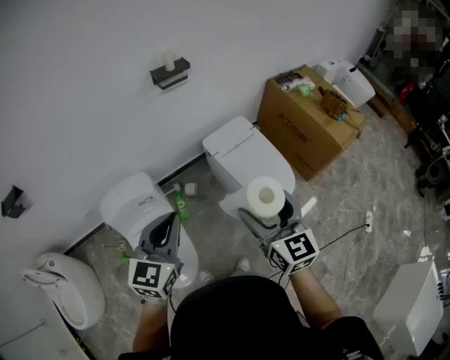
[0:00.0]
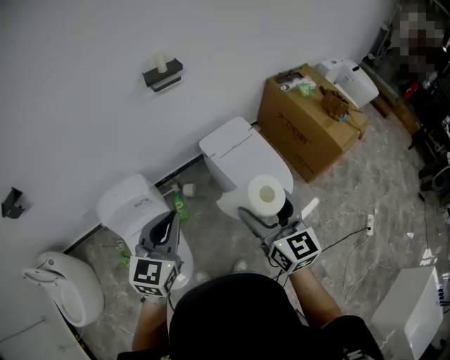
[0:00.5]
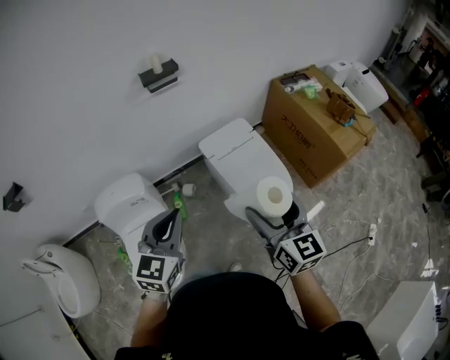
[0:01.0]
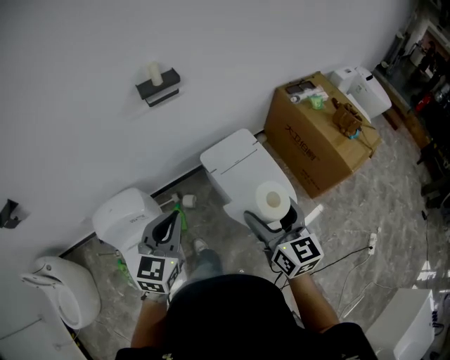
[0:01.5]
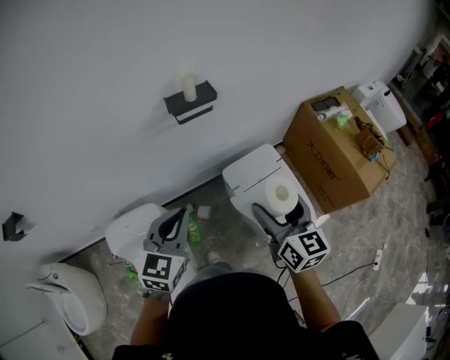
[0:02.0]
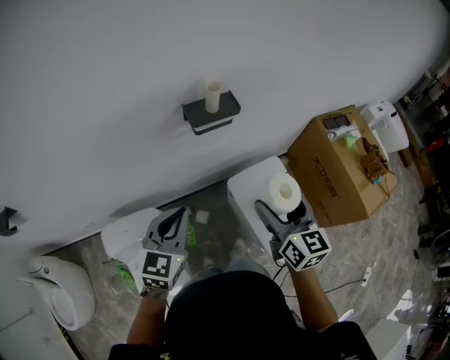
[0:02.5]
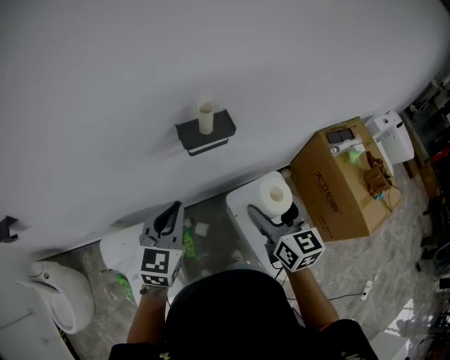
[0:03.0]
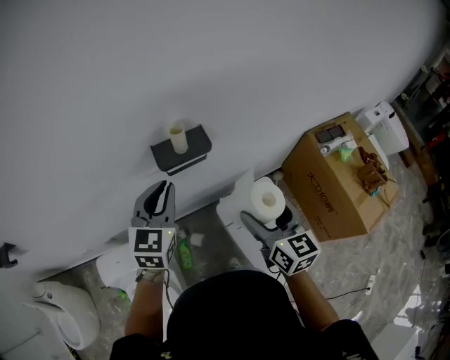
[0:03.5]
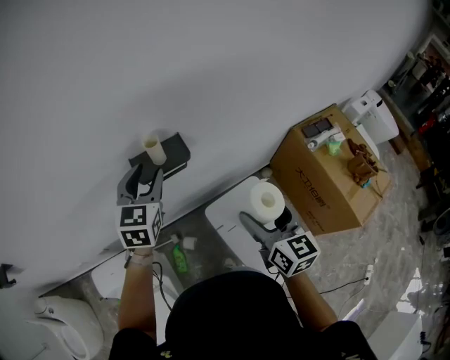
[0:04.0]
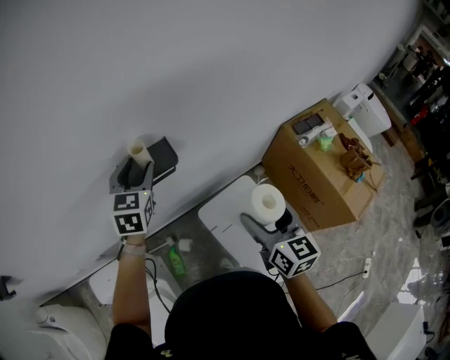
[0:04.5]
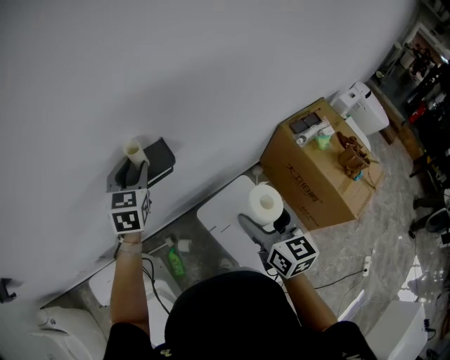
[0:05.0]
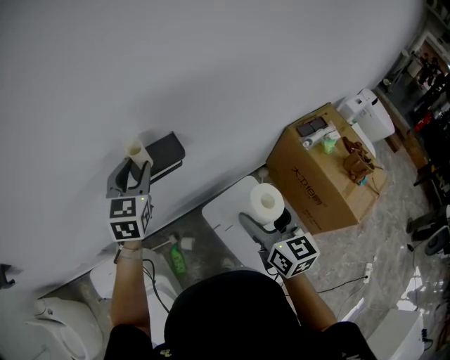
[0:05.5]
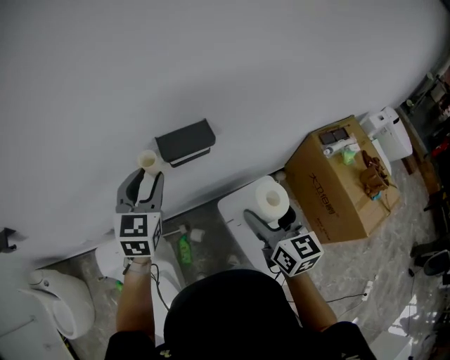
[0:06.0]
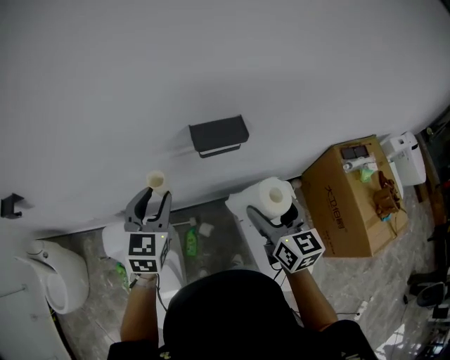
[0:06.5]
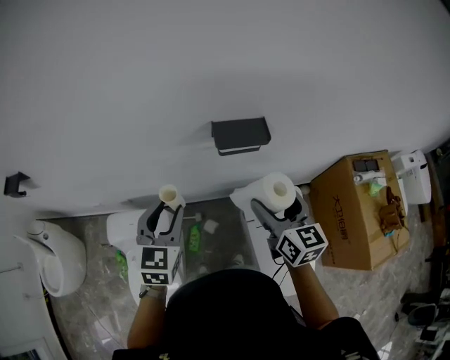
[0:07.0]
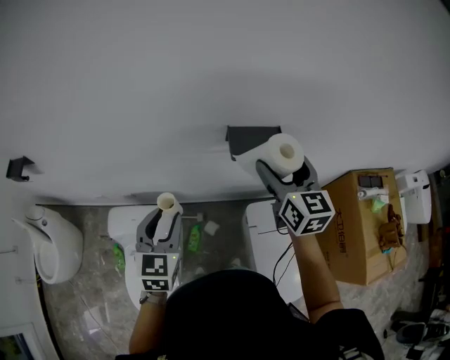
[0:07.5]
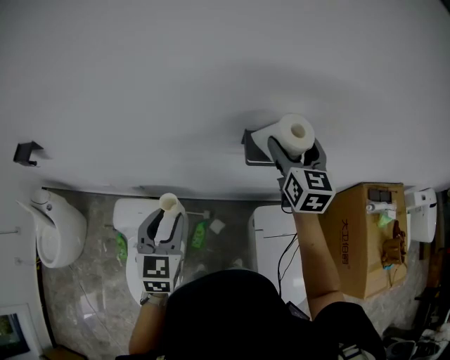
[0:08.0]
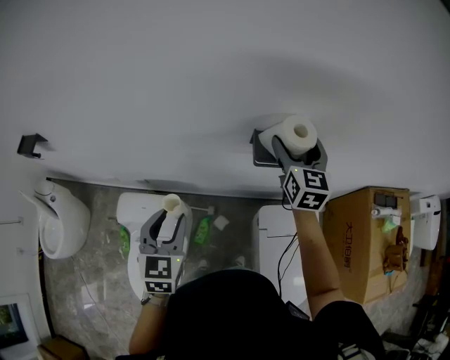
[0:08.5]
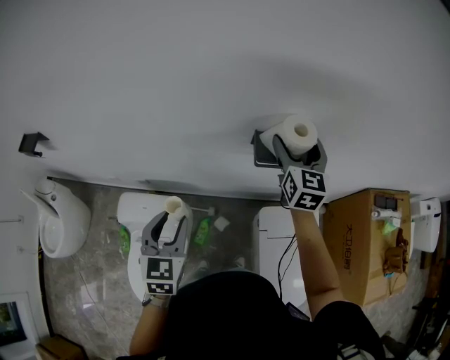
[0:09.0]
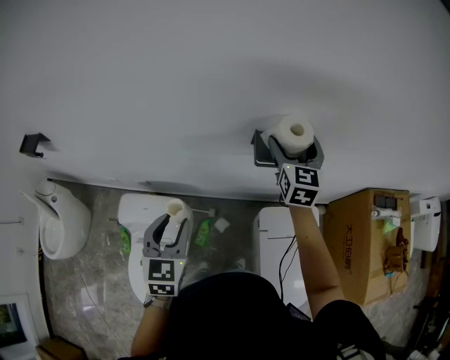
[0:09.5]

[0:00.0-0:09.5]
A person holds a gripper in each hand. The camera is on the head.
0:00.0 to 0:02.0: The grippers both shift forward by roughly 30 cm.
0:02.0 to 0:04.0: The right gripper moves forward, roughly 20 cm, while the left gripper goes some 35 cm forward, and opens its fingers.
0:04.0 to 0:05.5: There are only small adjustments of the grippers.
0:05.5 to 0:07.5: The left gripper shifts some 25 cm to the left and backward, and changes its angle by some 20 degrees. Meanwhile the right gripper is displaced to the left and forward by about 25 cm, and changes its angle by about 20 degrees.
0:07.5 to 0:09.5: The right gripper travels forward by approximately 10 cm.

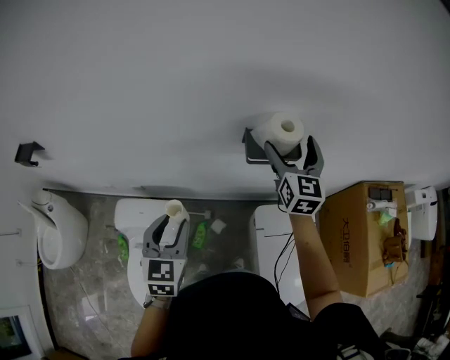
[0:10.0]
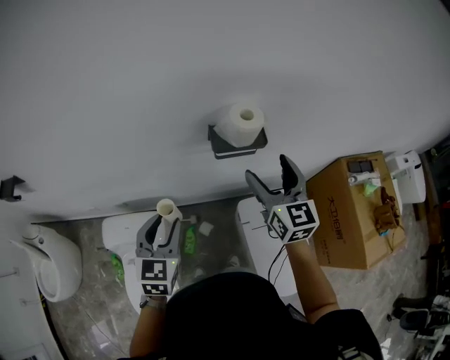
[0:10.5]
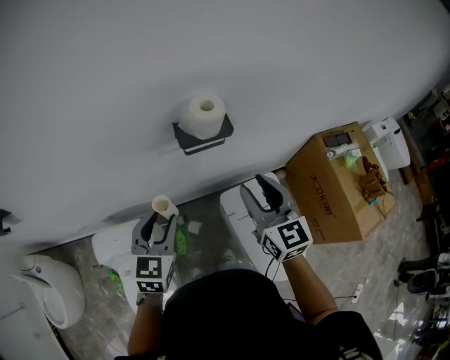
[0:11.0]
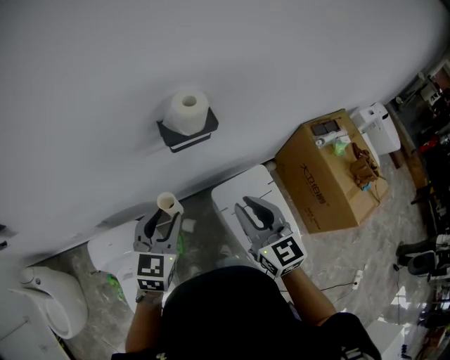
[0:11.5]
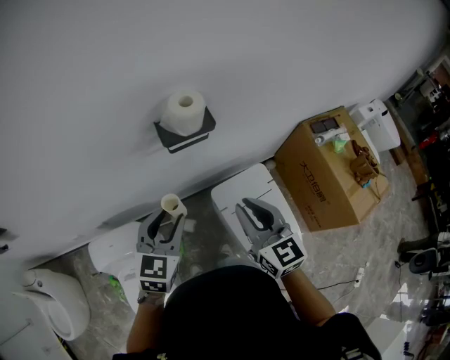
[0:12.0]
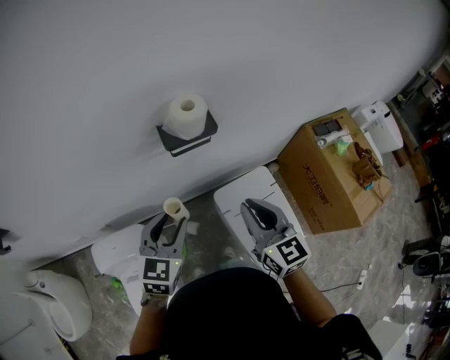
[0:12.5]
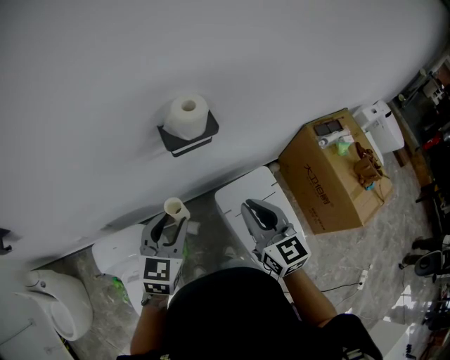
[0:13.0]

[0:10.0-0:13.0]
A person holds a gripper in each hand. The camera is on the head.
0:10.0 to 0:11.5: The right gripper travels backward by some 25 cm, and closes up. Meanwhile the left gripper shifts about 15 cm to the right, and rotates about 30 degrees.
0:11.5 to 0:13.0: The grippers stay close to where they were, moving slightly.

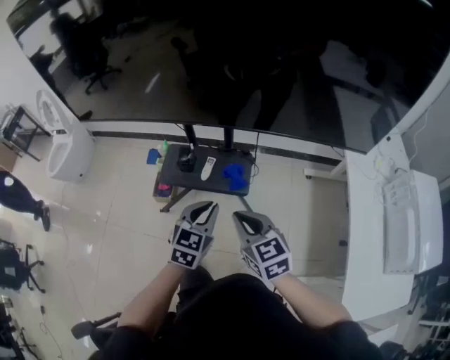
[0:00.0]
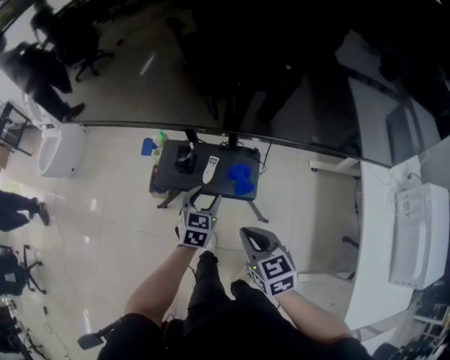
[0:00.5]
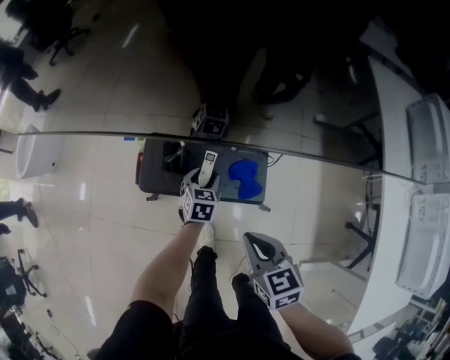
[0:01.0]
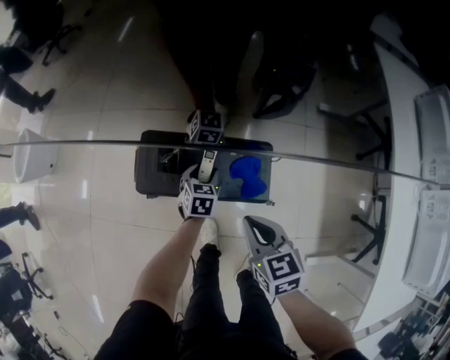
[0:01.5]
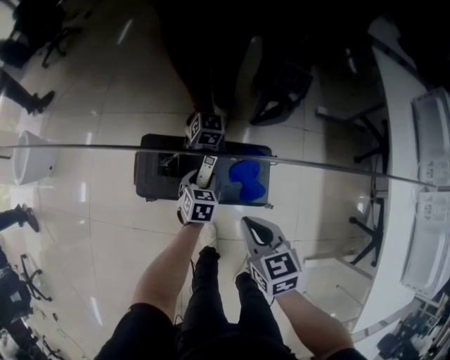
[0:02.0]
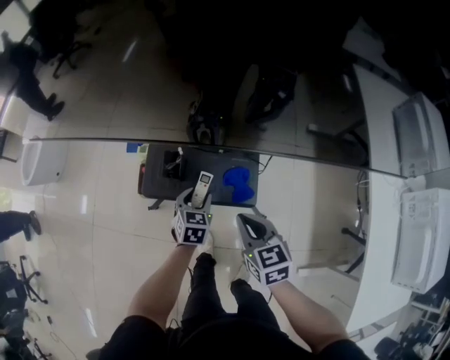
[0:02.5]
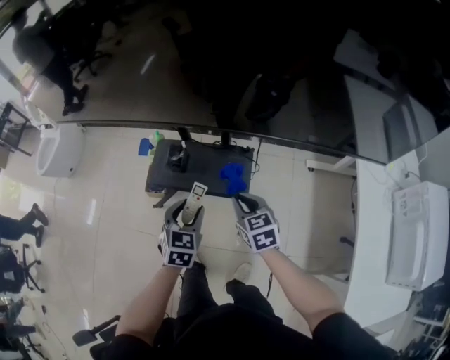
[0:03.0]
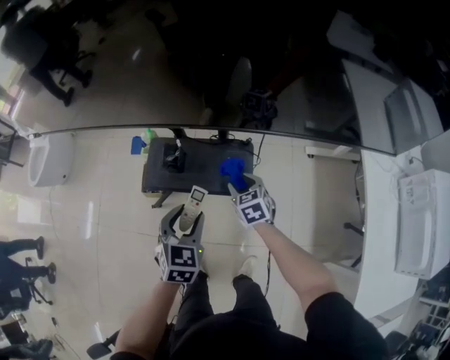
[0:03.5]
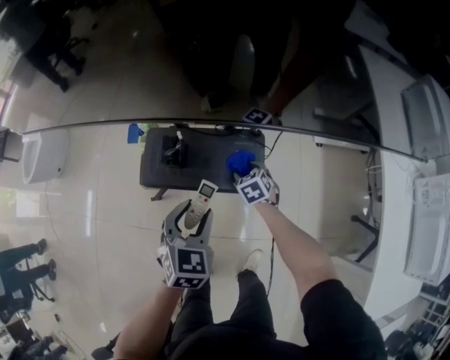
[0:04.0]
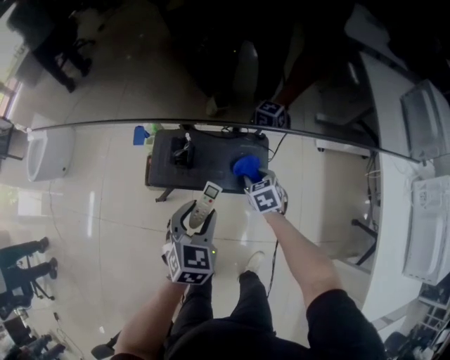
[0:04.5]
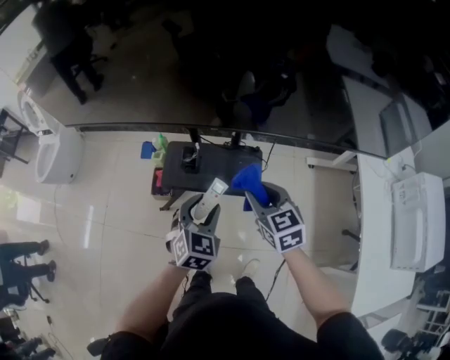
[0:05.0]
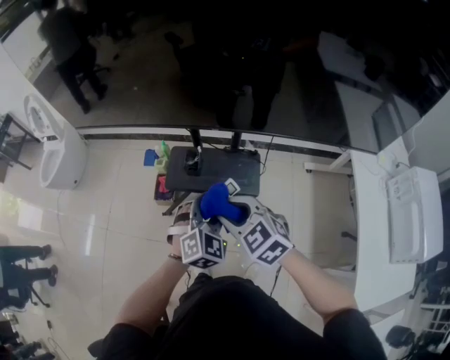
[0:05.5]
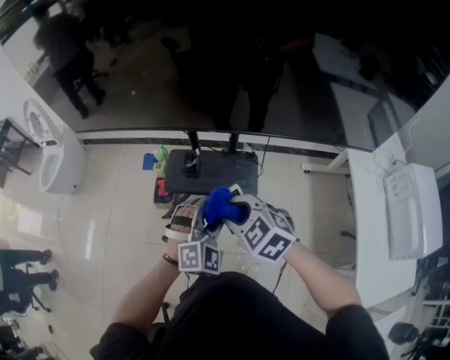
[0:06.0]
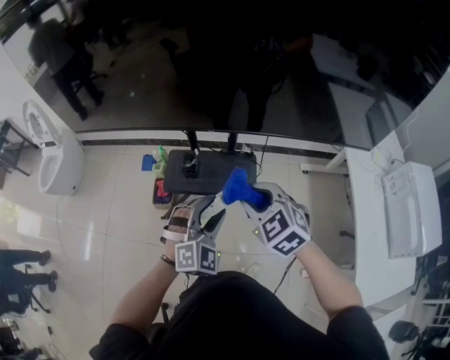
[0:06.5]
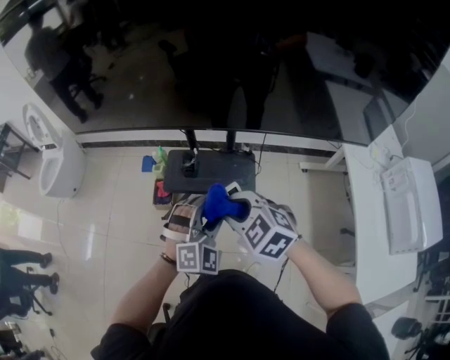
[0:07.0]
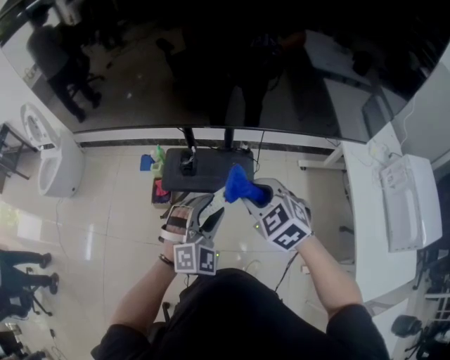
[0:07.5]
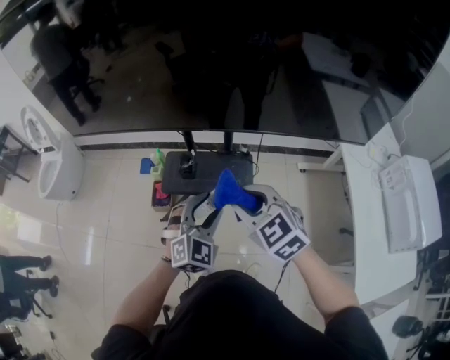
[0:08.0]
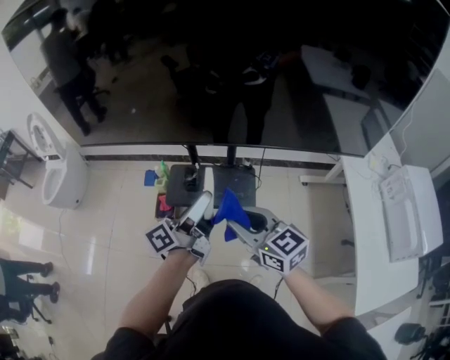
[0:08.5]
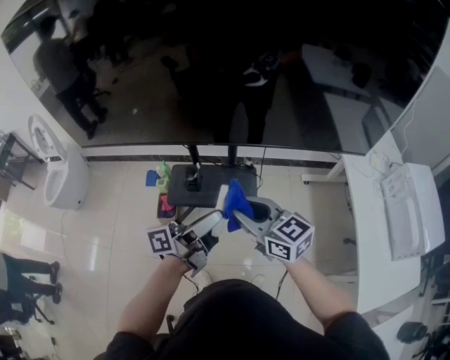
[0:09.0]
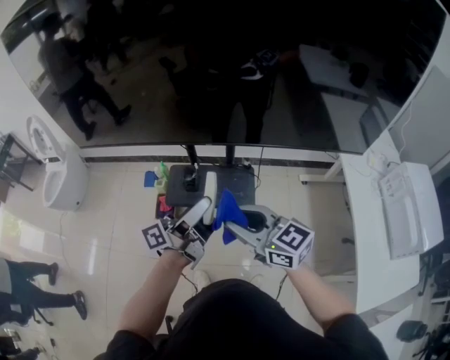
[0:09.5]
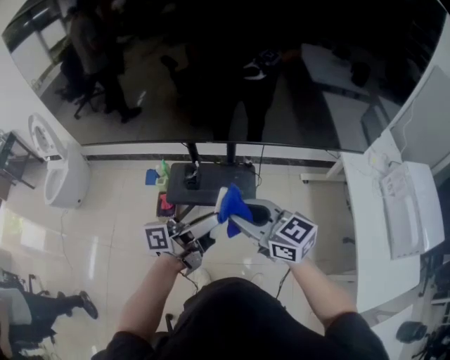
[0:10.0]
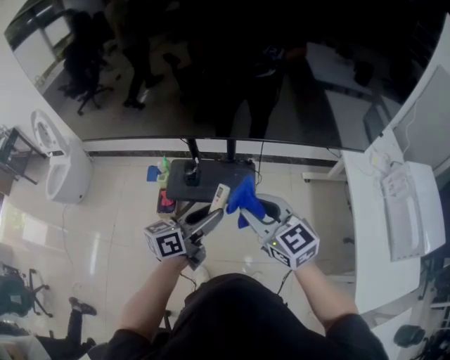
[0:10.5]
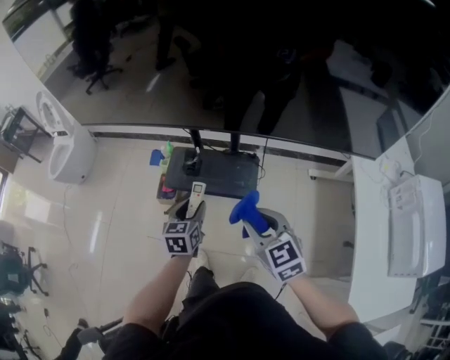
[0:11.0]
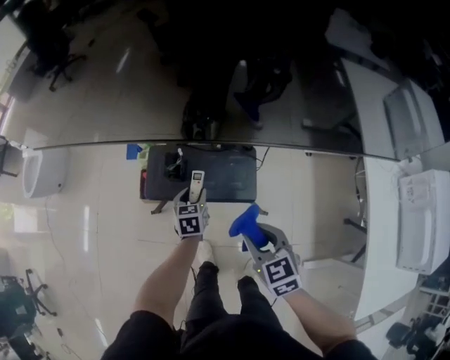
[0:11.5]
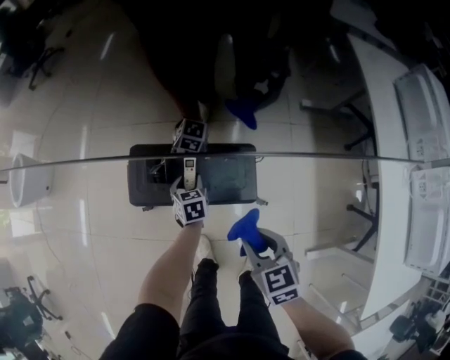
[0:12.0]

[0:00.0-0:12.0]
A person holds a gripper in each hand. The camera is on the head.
0:00.0 to 0:02.0: The right gripper shifts some 25 cm downward and forward. The left gripper moves downward and forward, approximately 40 cm, turns by roughly 30 degrees, and opens up.
0:02.0 to 0:04.0: The right gripper goes roughly 20 cm downward and forward, rotates approximately 30 degrees, and opens up, while the left gripper moves upward and backward, about 25 cm.
0:04.0 to 0:06.0: The right gripper shifts some 40 cm upward and backward, swivels roughly 40 degrees, and closes, while the left gripper moves upward and backward, approximately 15 cm, and rolls clockwise, seen from behind, by approximately 40 degrees.
0:06.0 to 0:08.0: The right gripper swings left and right, roughly 5 cm each way, with 2 reversals.
0:08.0 to 0:10.0: The right gripper swivels about 30 degrees; the left gripper travels upward by about 10 cm, and rotates around the line of its fingers by about 90 degrees, counterclockwise from behind.
0:10.0 to 0:12.0: The right gripper heads downward, covering some 25 cm, and tips its fingers downward by some 30 degrees, while the left gripper is displaced downward and forward by roughly 50 cm, and tilts its fingers about 70 degrees downward.

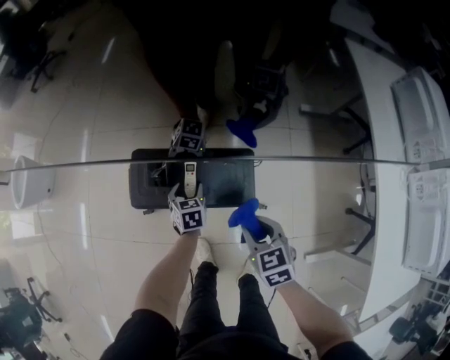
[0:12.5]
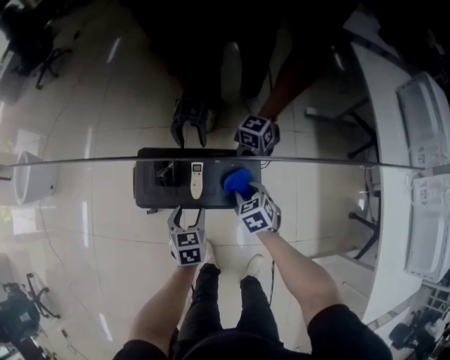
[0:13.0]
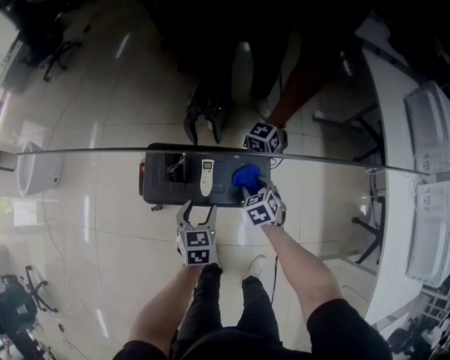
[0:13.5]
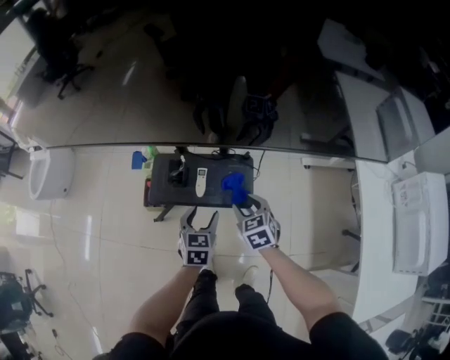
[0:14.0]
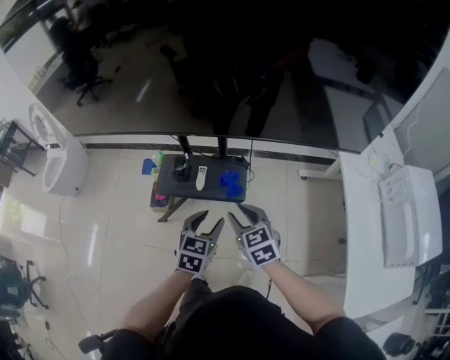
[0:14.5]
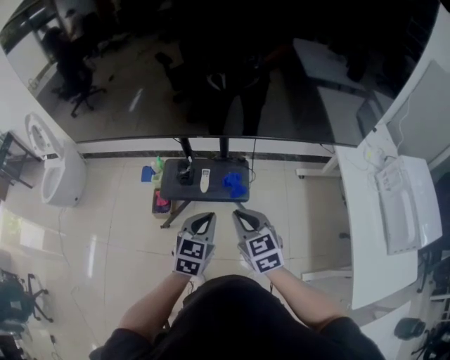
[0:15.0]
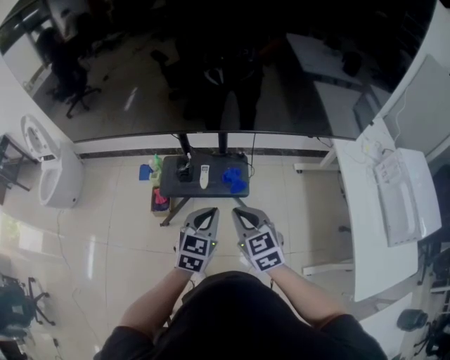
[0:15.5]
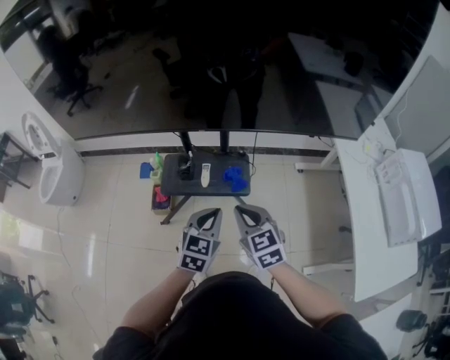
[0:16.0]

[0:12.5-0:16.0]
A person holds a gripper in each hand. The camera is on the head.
0:12.5 to 0:14.5: The left gripper moves upward and backward, some 35 cm, and swivels some 30 degrees. Meanwhile the right gripper shifts roughly 15 cm upward and backward.
0:14.5 to 0:16.0: The right gripper changes place by roughly 5 cm, and closes up; the left gripper closes.
